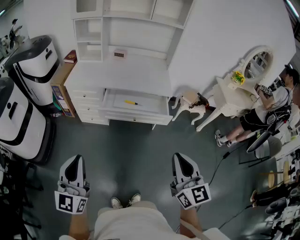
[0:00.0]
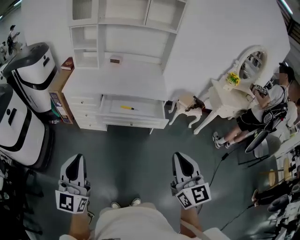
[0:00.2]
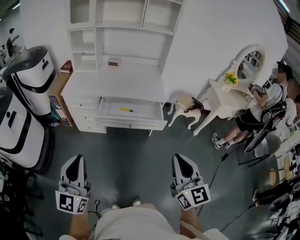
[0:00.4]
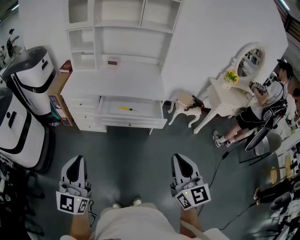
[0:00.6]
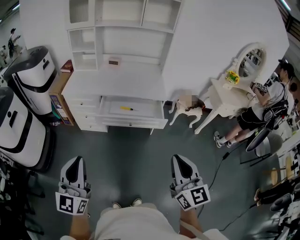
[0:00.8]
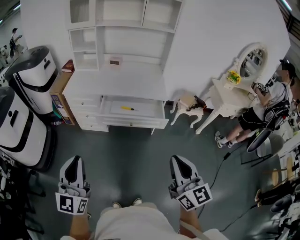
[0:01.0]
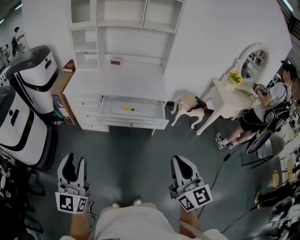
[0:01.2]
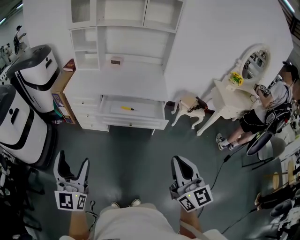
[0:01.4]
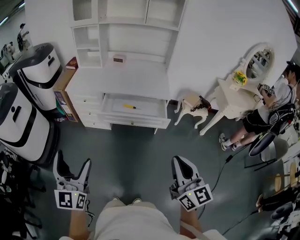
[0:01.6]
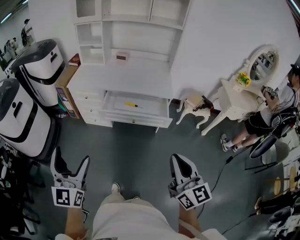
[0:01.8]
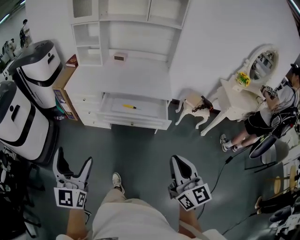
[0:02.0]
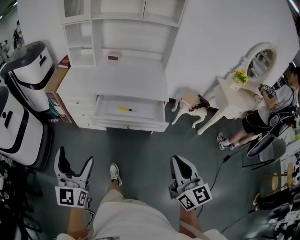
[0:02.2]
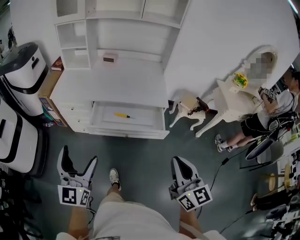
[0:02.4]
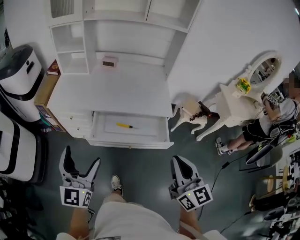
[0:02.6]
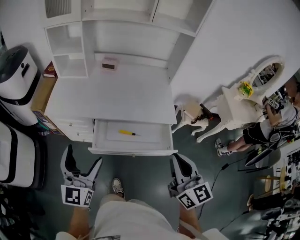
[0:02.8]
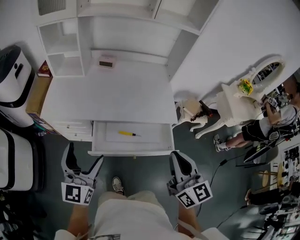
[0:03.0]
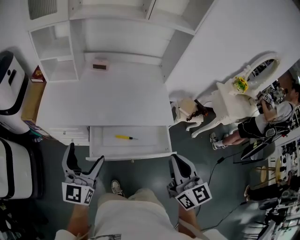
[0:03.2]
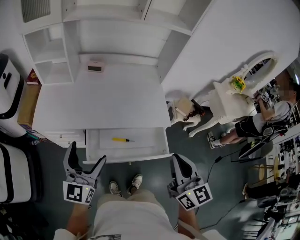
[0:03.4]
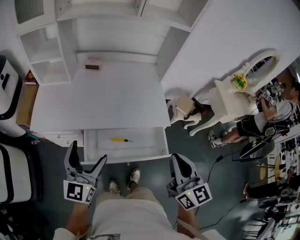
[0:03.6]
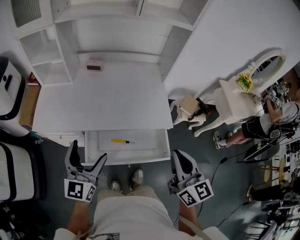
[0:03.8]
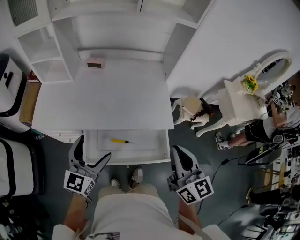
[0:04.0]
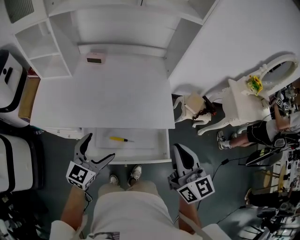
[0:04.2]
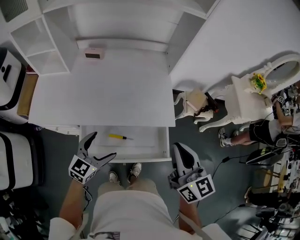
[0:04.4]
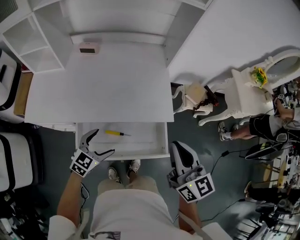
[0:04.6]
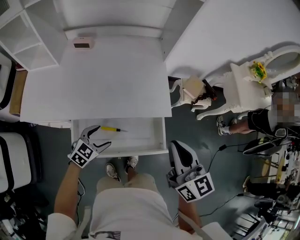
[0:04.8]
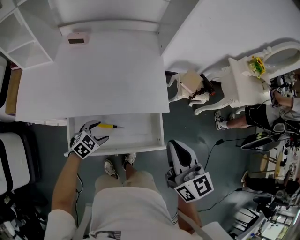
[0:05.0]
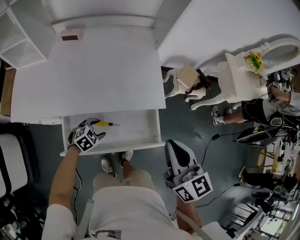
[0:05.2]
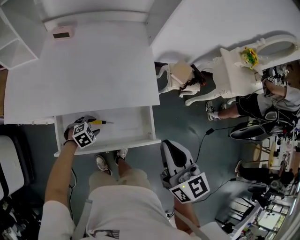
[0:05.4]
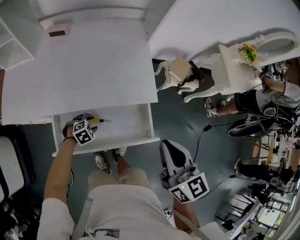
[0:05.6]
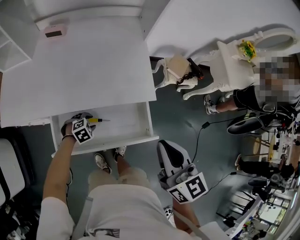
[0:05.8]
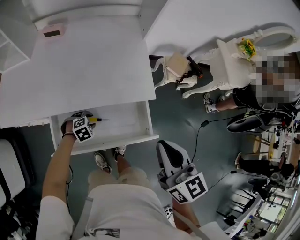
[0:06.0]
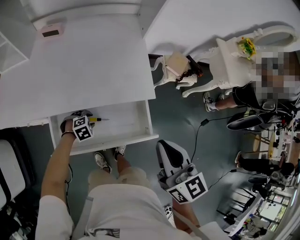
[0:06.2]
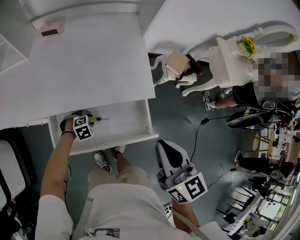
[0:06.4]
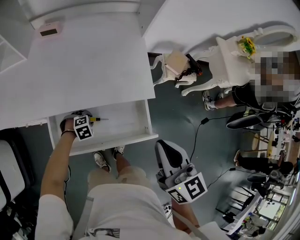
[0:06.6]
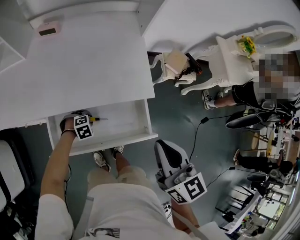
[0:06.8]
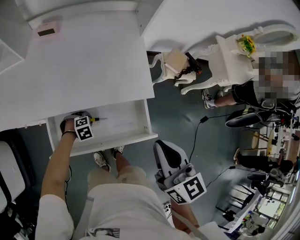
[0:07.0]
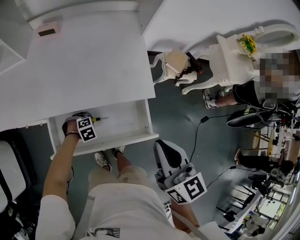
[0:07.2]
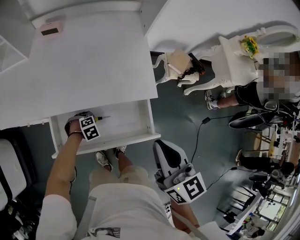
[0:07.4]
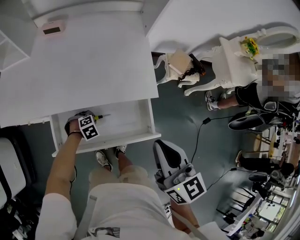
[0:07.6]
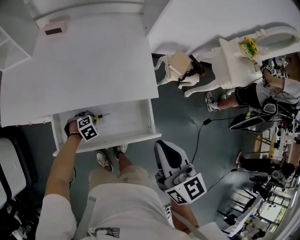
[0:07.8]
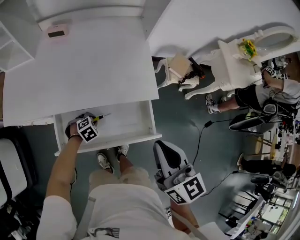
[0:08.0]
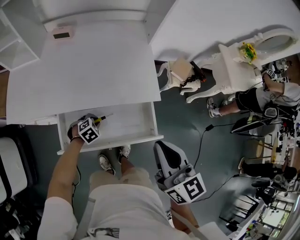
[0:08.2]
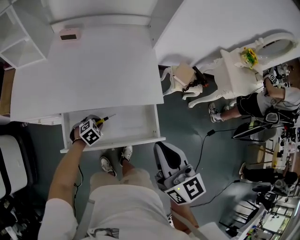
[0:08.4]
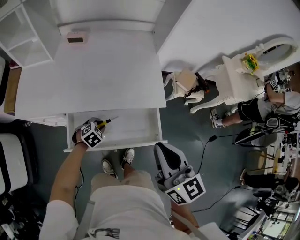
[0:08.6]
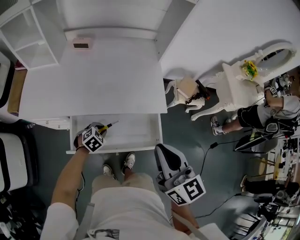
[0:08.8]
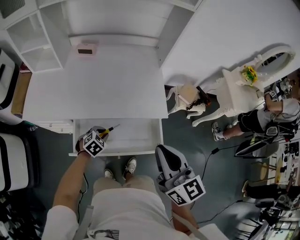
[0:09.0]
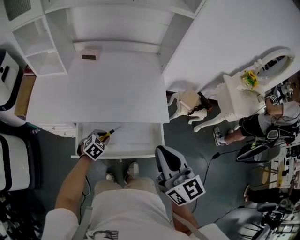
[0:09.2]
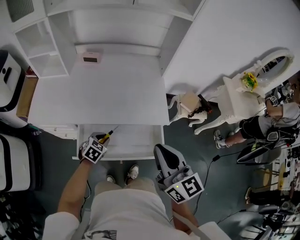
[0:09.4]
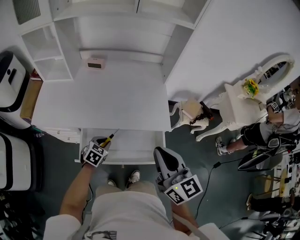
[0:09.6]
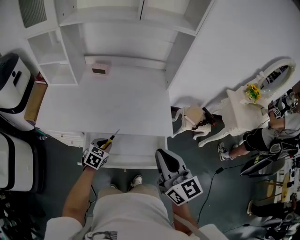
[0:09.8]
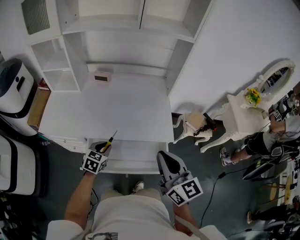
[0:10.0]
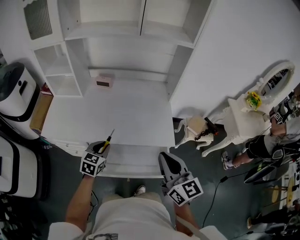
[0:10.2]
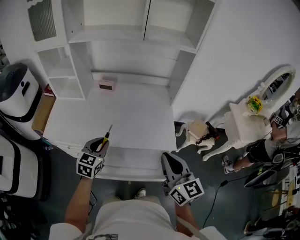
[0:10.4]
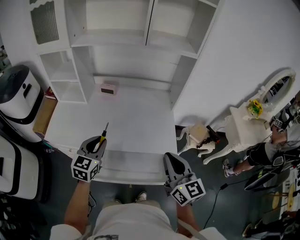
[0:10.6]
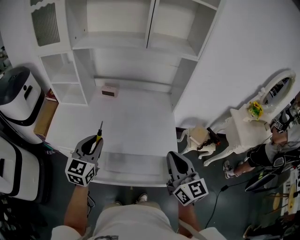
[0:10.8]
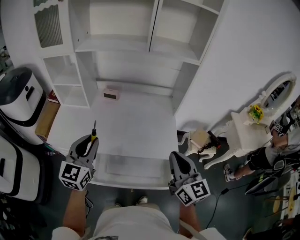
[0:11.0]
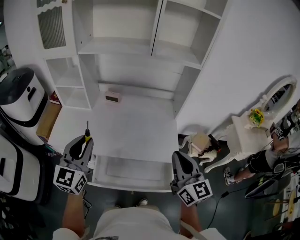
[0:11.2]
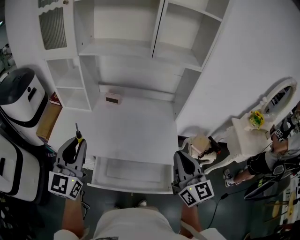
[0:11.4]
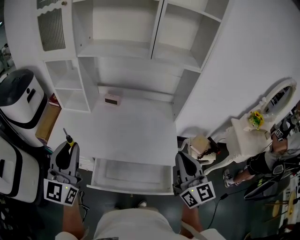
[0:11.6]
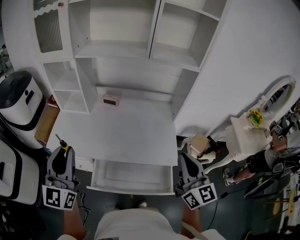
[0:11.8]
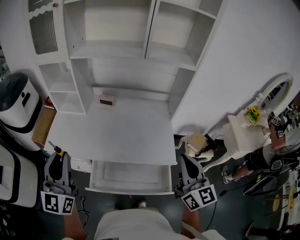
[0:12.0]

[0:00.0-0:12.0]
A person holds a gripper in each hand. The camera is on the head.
0:00.0 to 0:01.6: The right gripper travels to the right by about 5 cm. Meanwhile the left gripper opens.
0:01.6 to 0:03.0: The pair of grippers is taken forward, roughly 40 cm.
0:03.0 to 0:04.4: The right gripper shifts roughly 20 cm forward and to the right. The left gripper is displaced downward, forward and to the right by some 25 cm, and changes its angle by approximately 40 degrees.
0:04.4 to 0:06.0: The right gripper travels downward by roughly 5 cm, while the left gripper moves downward, approximately 25 cm, tilts its fingers about 50 degrees downward, and closes.
0:06.0 to 0:07.6: The grippers make only small movements.
0:07.6 to 0:09.0: The right gripper travels upward by about 5 cm; the left gripper goes some 15 cm upward, and changes its angle by approximately 30 degrees.
0:09.0 to 0:10.4: The right gripper ends up roughly 5 cm from where it was, while the left gripper is displaced upward by roughly 25 cm, and angles its fingers upward, by some 30 degrees.
0:10.4 to 0:12.0: The right gripper travels upward by about 10 cm; the left gripper travels upward and to the left by approximately 25 cm, and tips its fingers upward by approximately 40 degrees.

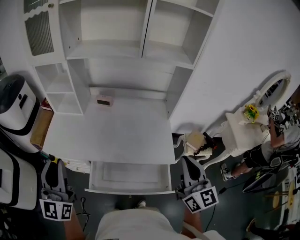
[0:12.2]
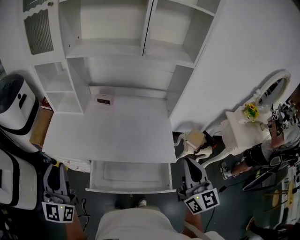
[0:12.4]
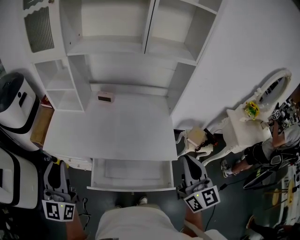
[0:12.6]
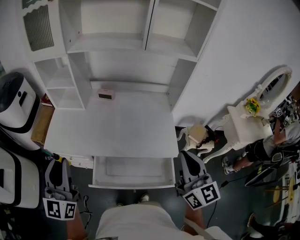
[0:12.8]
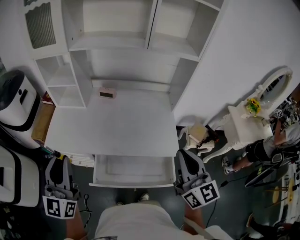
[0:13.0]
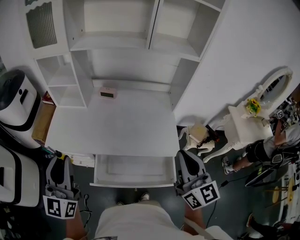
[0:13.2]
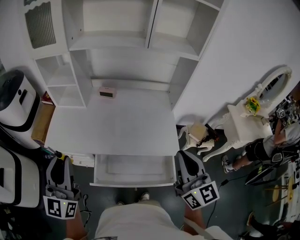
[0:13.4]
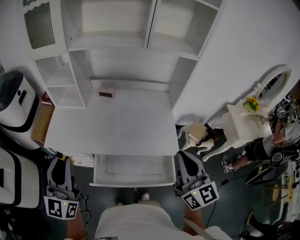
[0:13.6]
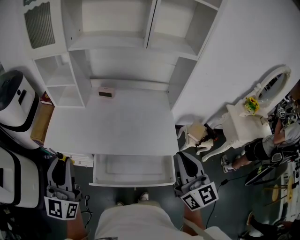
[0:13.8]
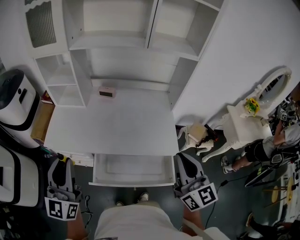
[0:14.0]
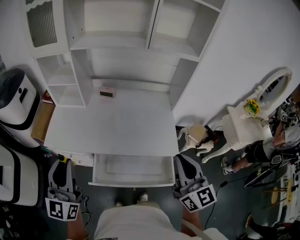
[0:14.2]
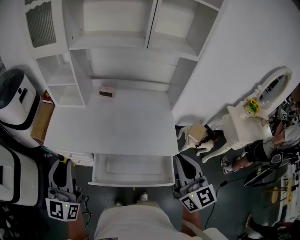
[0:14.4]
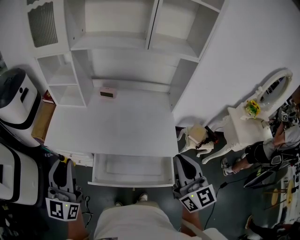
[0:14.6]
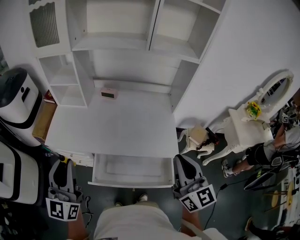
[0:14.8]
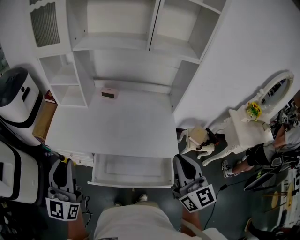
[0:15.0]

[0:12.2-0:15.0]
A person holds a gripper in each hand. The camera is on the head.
0:12.2 to 0:13.6: The right gripper goes roughly 5 cm to the left.
0:13.6 to 0:15.0: There are only small adjustments of the grippers.

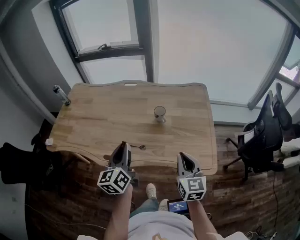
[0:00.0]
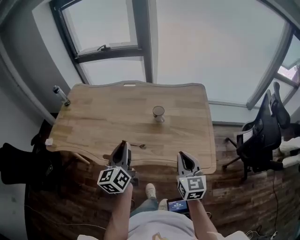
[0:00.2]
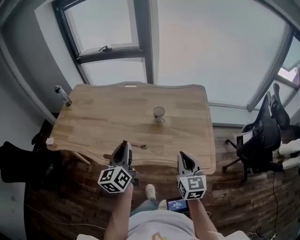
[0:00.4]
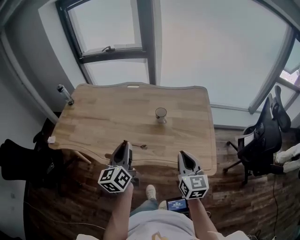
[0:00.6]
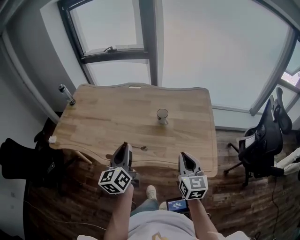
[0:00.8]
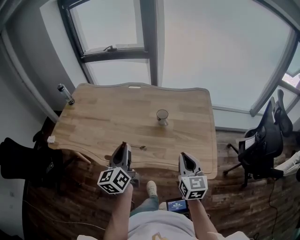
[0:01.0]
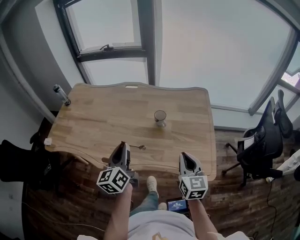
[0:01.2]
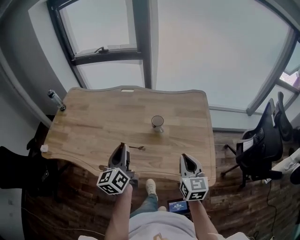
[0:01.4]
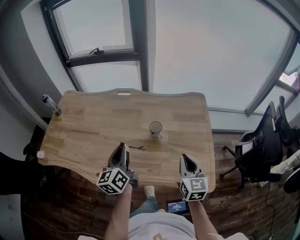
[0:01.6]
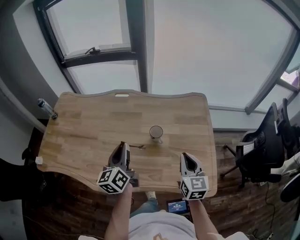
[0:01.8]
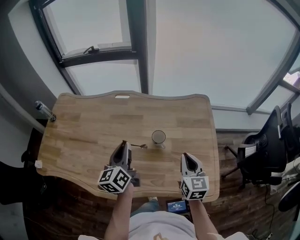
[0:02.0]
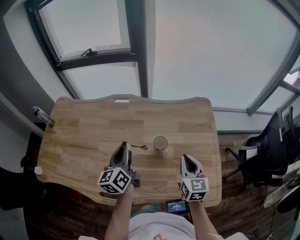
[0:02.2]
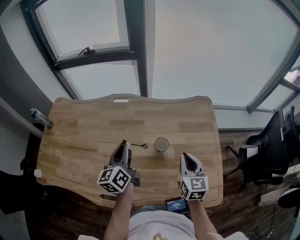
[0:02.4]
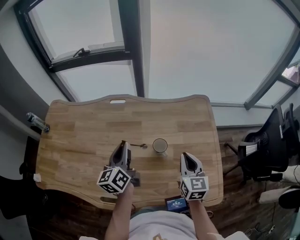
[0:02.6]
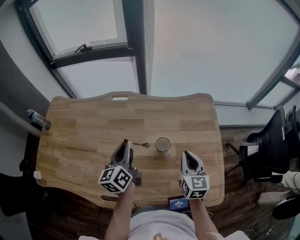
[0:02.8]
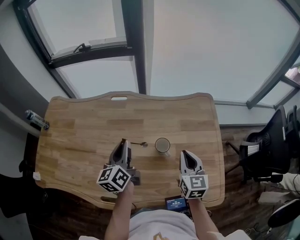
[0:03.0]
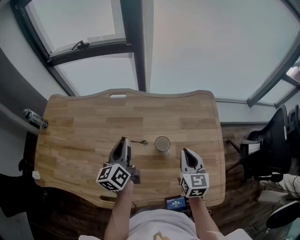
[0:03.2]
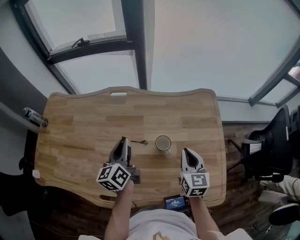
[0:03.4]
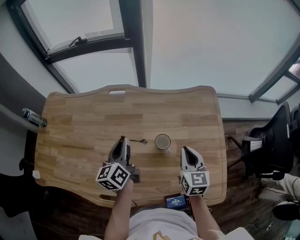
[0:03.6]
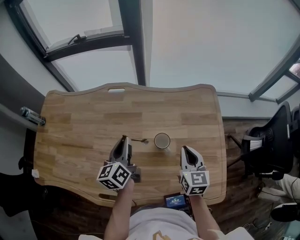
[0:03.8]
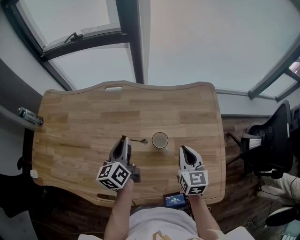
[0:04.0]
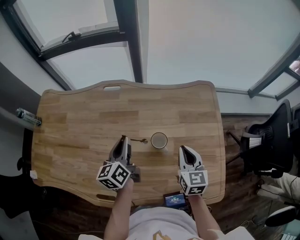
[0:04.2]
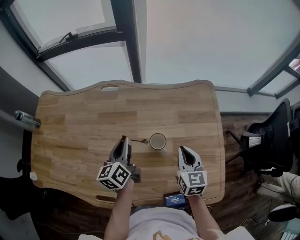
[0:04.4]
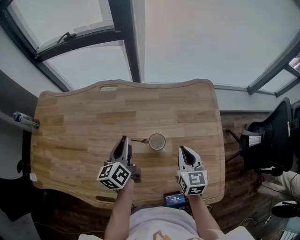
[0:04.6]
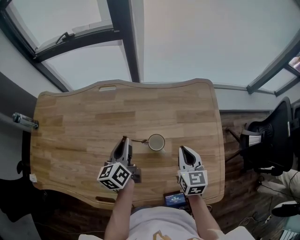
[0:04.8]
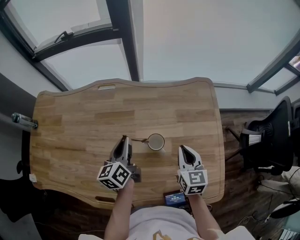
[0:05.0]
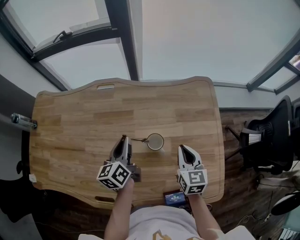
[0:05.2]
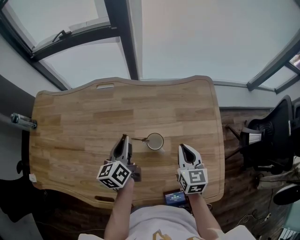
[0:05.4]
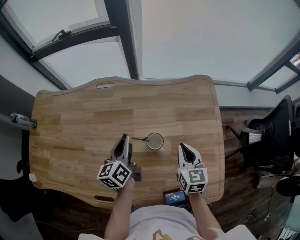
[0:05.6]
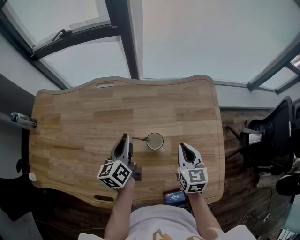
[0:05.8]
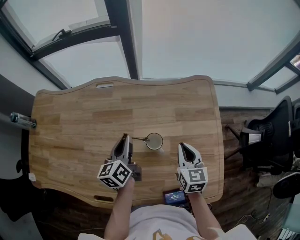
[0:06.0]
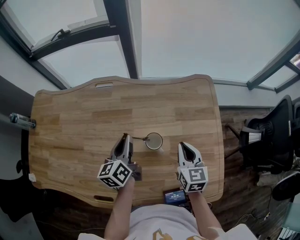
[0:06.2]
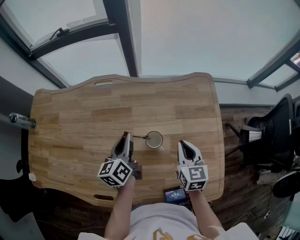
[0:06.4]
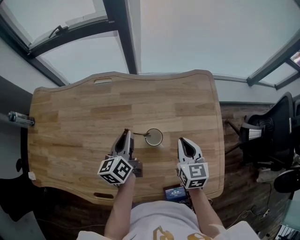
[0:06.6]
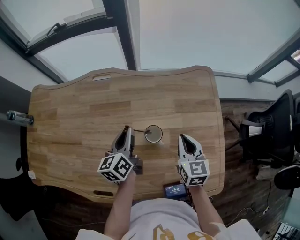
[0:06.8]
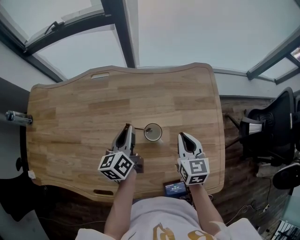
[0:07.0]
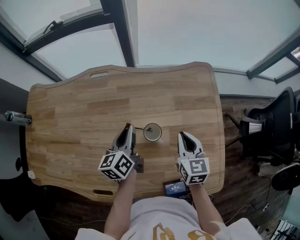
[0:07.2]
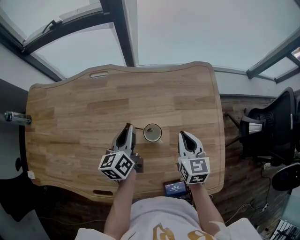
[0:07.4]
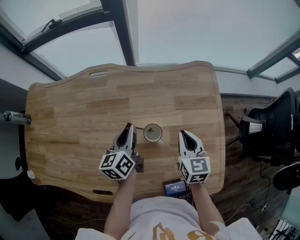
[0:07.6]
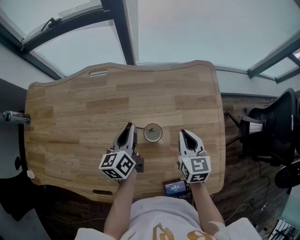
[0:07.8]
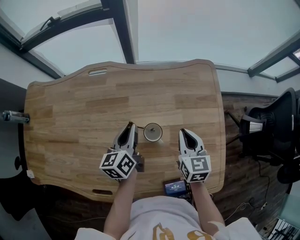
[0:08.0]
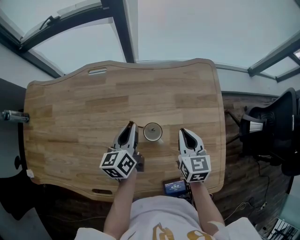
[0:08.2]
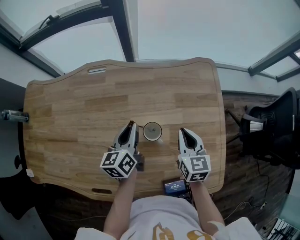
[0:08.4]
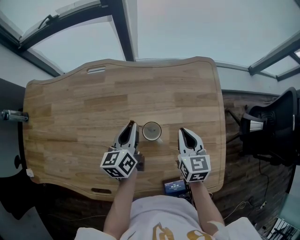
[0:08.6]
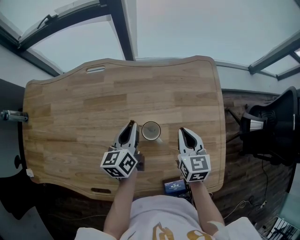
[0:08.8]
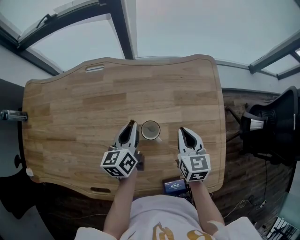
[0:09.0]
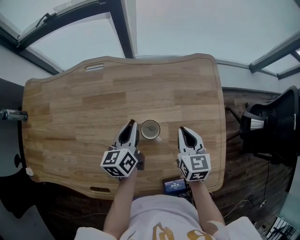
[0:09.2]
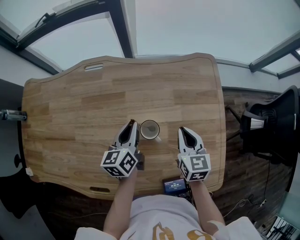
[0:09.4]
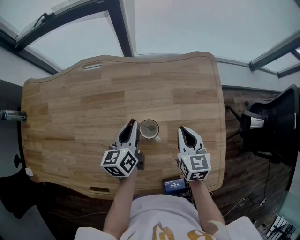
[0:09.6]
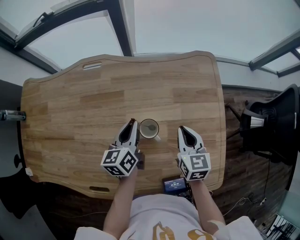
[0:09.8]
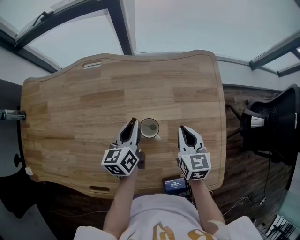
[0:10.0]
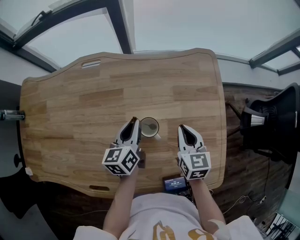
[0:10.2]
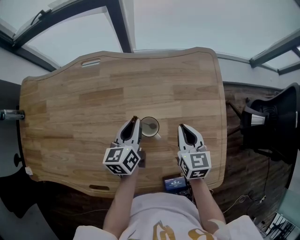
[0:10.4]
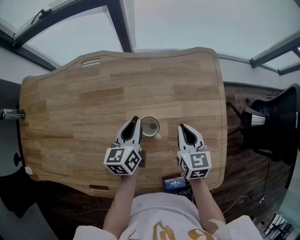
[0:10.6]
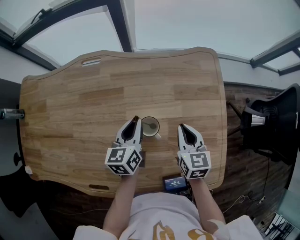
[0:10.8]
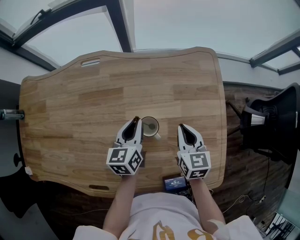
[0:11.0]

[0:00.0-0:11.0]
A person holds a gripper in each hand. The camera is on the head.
0:00.0 to 0:01.6: The grippers both shift forward by some 10 cm.
0:01.6 to 0:03.2: The two grippers go some 20 cm forward.
0:03.2 to 0:04.8: The grippers both shift downward by approximately 5 cm.
0:04.8 to 0:07.8: The grippers move only a little.
0:07.8 to 0:11.0: The grippers move only a little.
